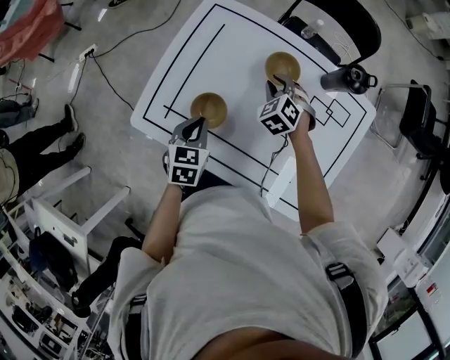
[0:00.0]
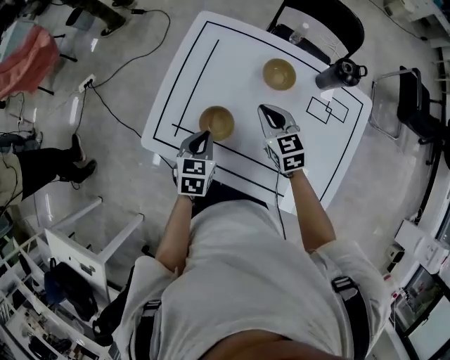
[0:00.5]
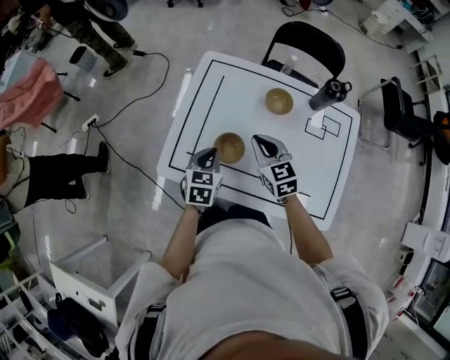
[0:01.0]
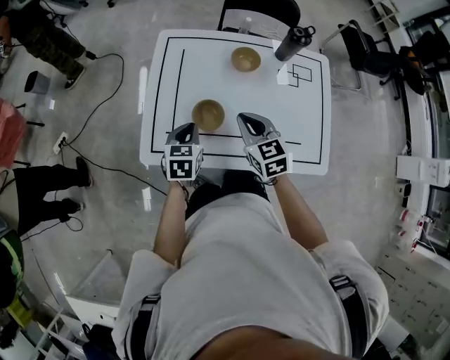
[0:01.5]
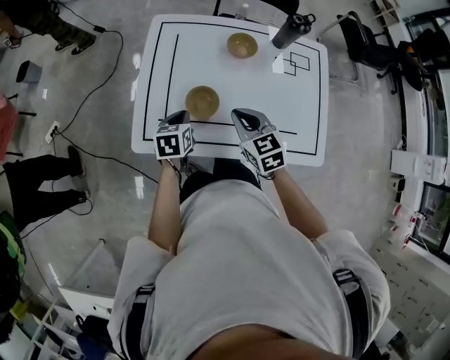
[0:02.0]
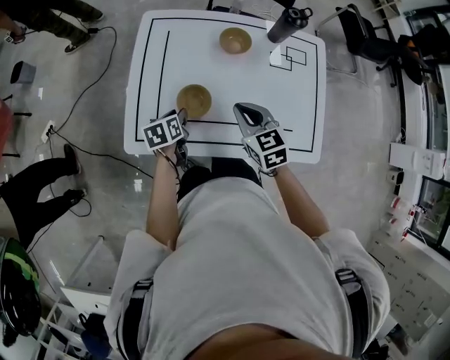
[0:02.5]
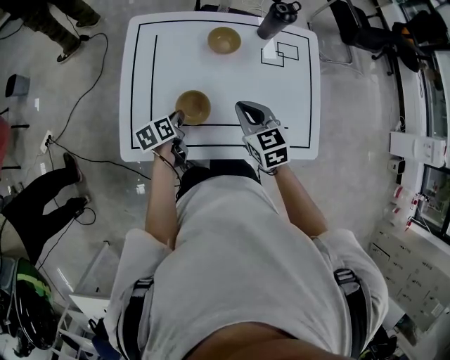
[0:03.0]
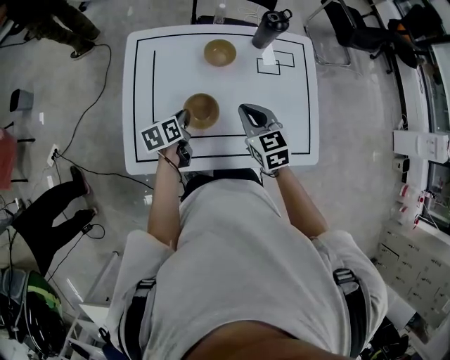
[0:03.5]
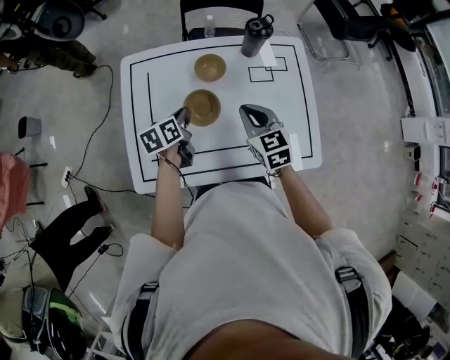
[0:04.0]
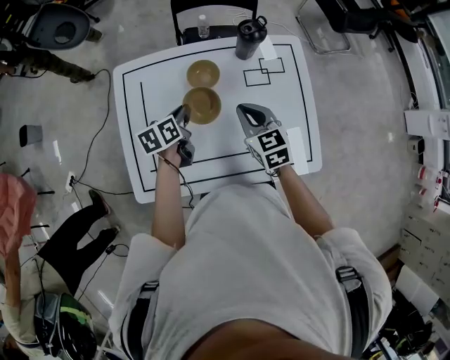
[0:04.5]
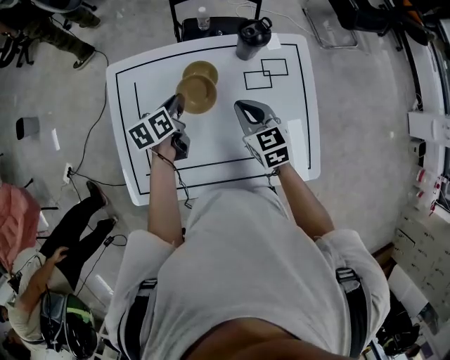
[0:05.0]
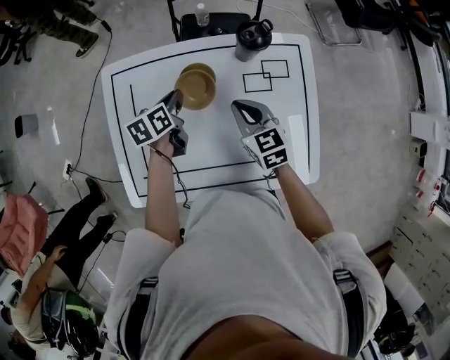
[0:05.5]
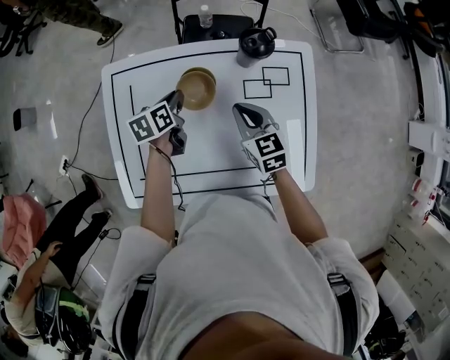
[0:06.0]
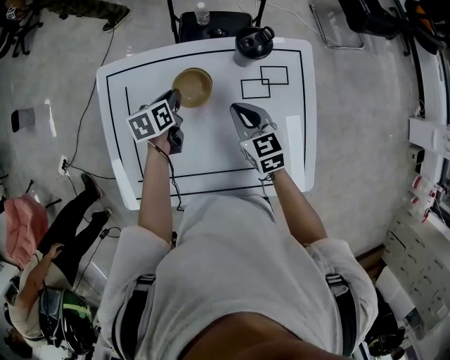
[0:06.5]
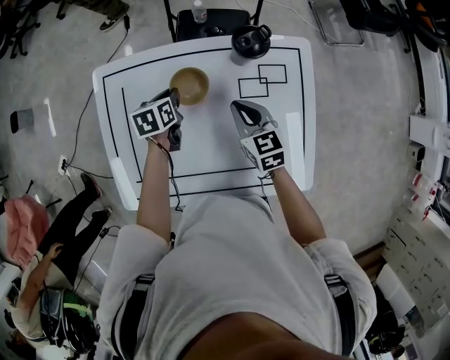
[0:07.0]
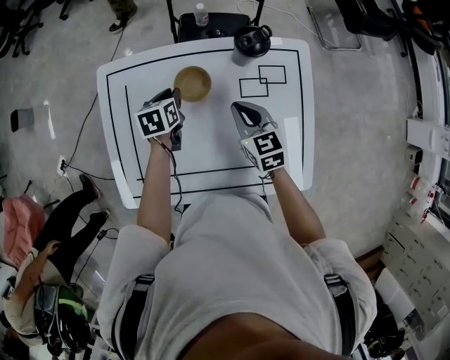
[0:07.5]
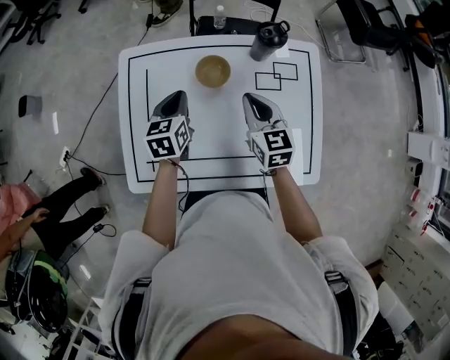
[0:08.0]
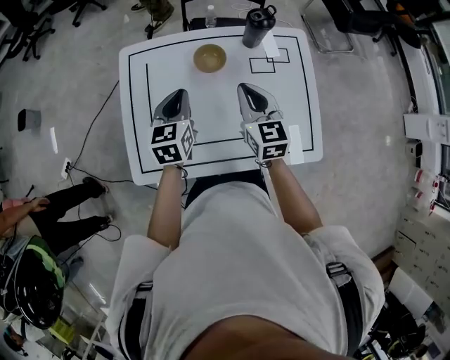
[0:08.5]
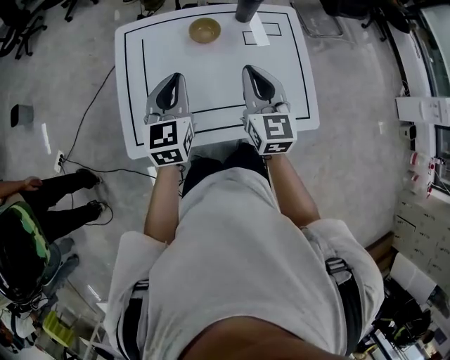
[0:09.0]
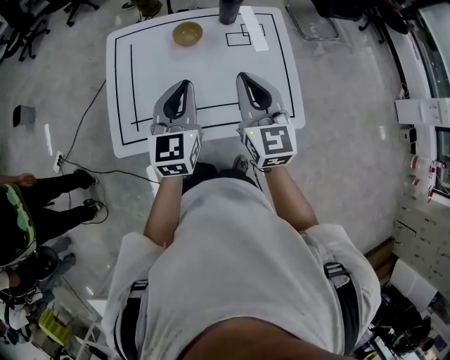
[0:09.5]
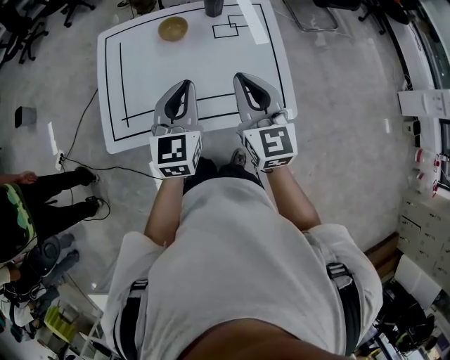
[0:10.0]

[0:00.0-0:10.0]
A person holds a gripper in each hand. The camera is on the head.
0:00.0 to 0:02.0: The left gripper moves to the left, roughly 5 cm, while the right gripper travels backward, upward and to the left by some 25 cm, rolls clockwise, seen from behind, by about 40 degrees, and closes.
0:02.0 to 0:04.0: The left gripper travels forward and to the right by about 15 cm, and opens, then closes once more. Meanwhile the right gripper heads to the right and forward, covering about 15 cm.
0:04.0 to 0:06.0: The left gripper travels forward by approximately 15 cm, while the right gripper travels forward and downward by approximately 15 cm.
0:06.0 to 0:08.0: The left gripper goes about 10 cm upward and backward, and changes its angle by approximately 30 degrees. Meanwhile the right gripper is displaced upward by about 5 cm.
0:08.0 to 0:10.0: The right gripper moves backward and upward, roughly 30 cm; the left gripper is displaced backward, to the right and upward by some 35 cm, and changes its angle by roughly 30 degrees.

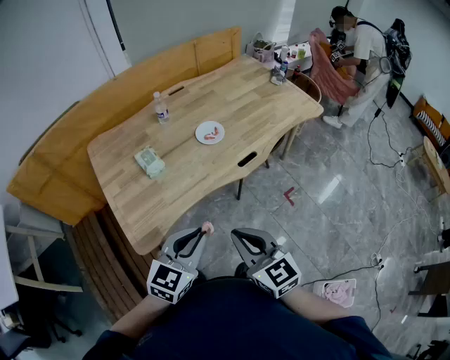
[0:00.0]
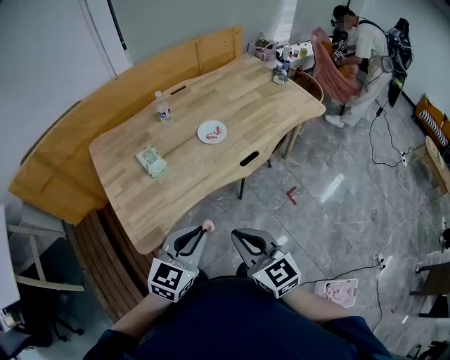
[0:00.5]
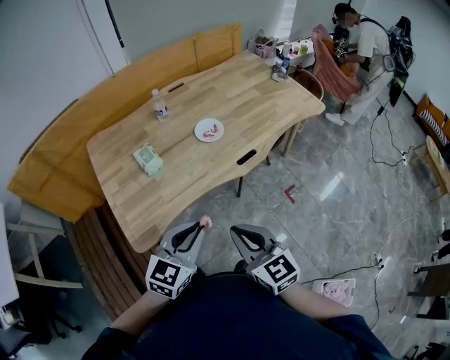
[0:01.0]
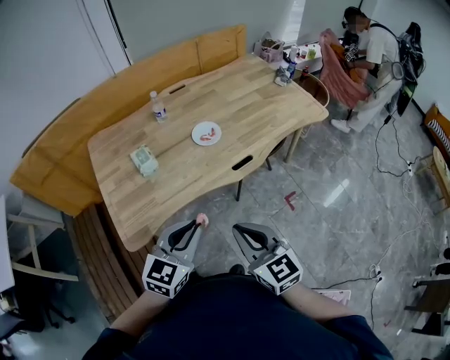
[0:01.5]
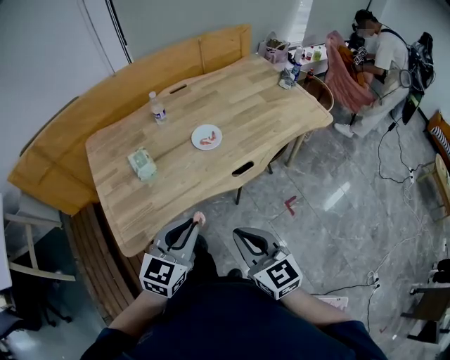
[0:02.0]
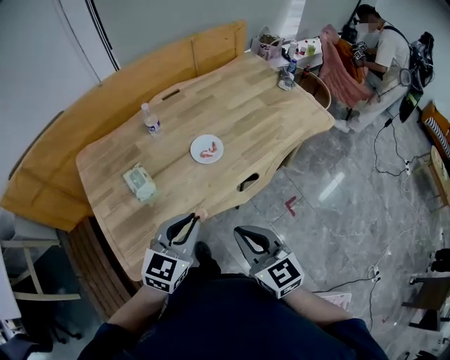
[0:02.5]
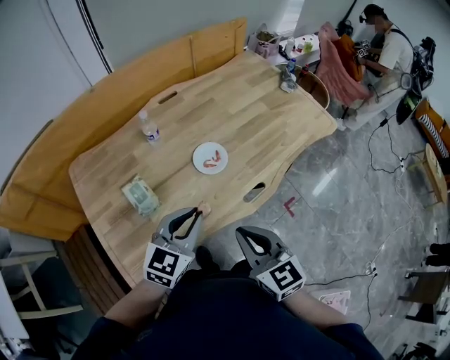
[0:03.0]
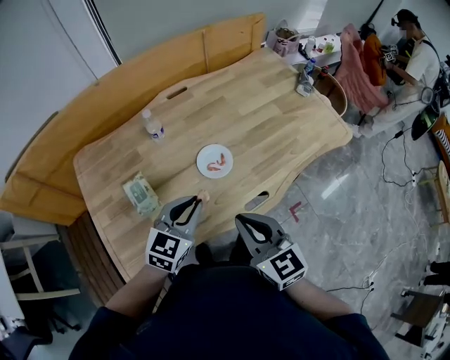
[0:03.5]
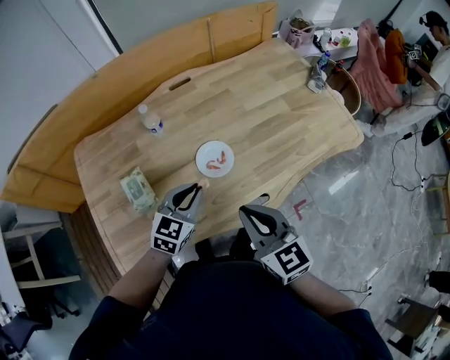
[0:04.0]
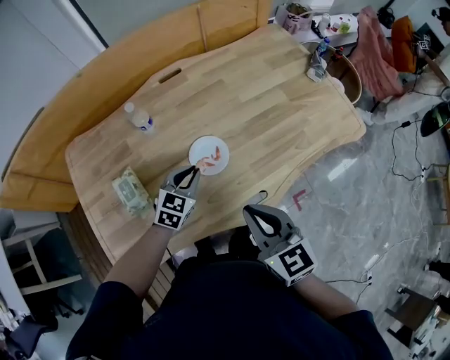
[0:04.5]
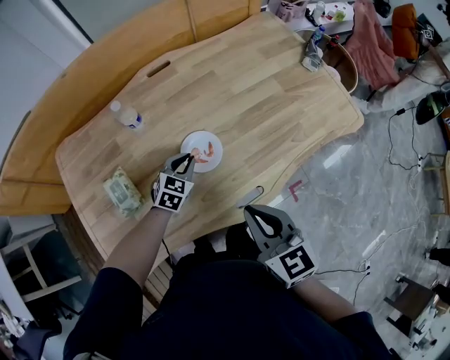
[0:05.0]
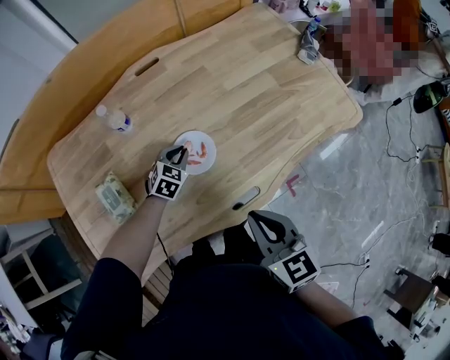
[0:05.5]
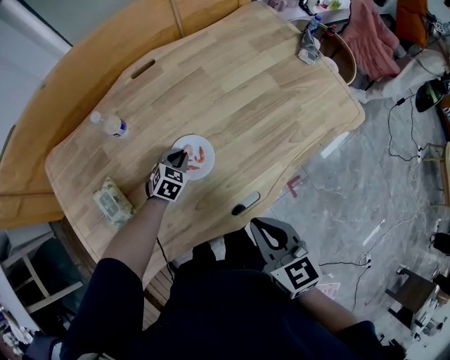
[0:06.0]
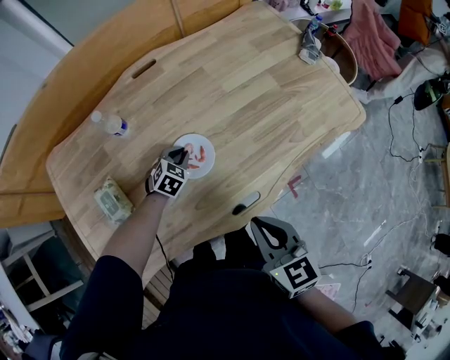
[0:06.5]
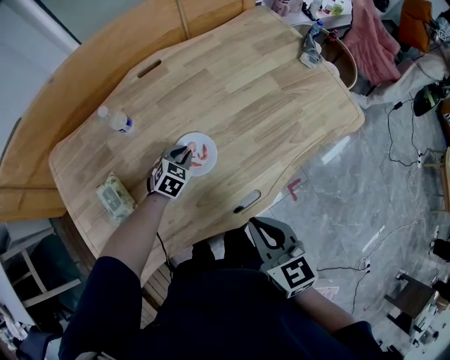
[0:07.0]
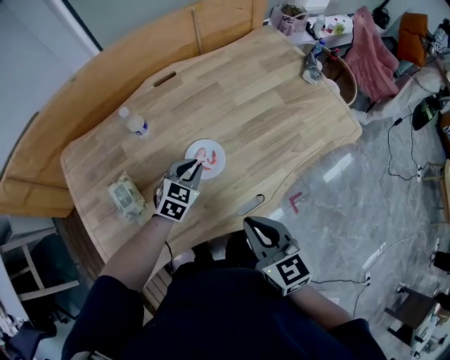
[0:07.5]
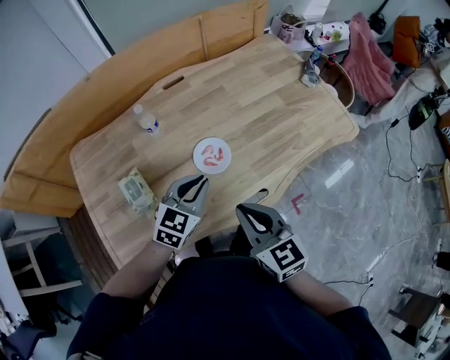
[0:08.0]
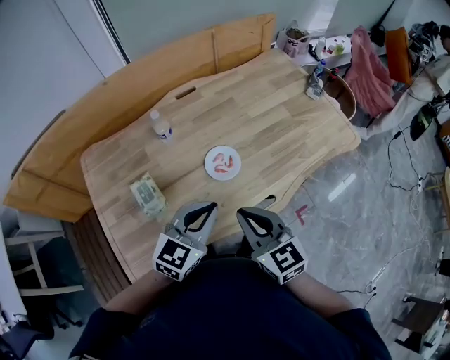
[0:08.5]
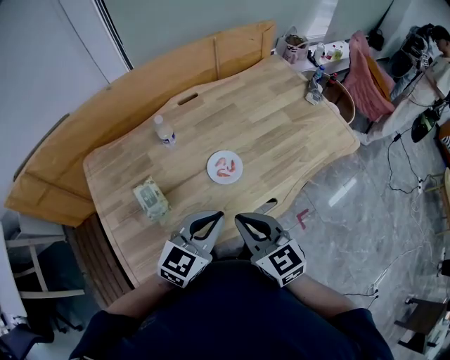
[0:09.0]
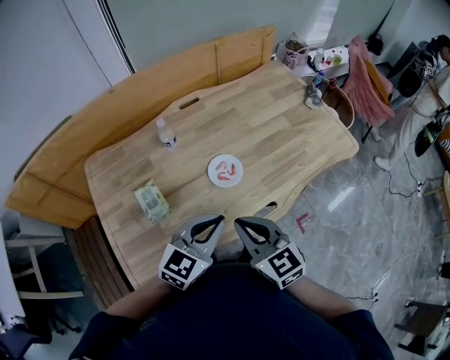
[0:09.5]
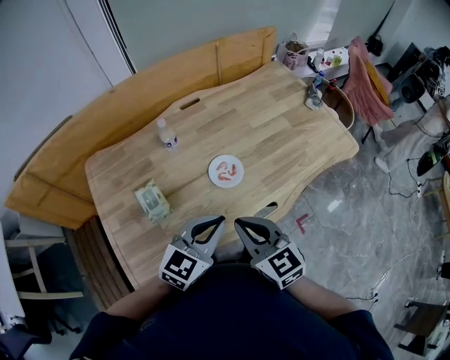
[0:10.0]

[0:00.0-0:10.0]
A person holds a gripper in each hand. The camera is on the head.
0:00.0 to 0:02.0: The right gripper goes about 10 cm to the right and forward; the left gripper travels forward and to the right by some 10 cm.
0:02.0 to 0:04.0: The two grippers go roughly 30 cm forward.
0:04.0 to 0:06.0: The left gripper shifts some 25 cm downward and forward, and changes its angle by about 30 degrees. Meanwhile the right gripper heads downward and to the right, covering some 10 cm.
0:06.0 to 0:08.0: The left gripper travels upward and backward by about 30 cm, and changes its angle by some 30 degrees; the right gripper travels to the left and upward by roughly 10 cm.
0:08.0 to 0:10.0: The right gripper goes some 5 cm to the left, while the left gripper shifts some 15 cm backward and upward.

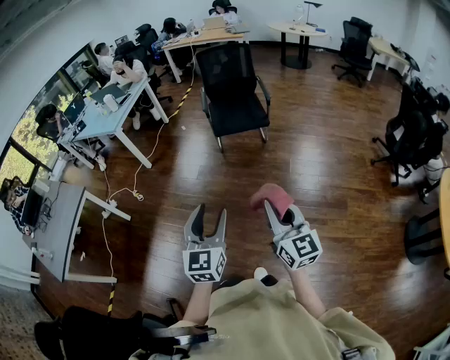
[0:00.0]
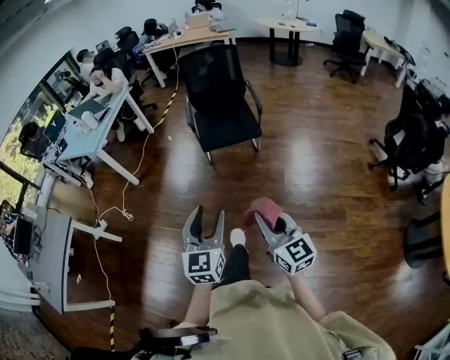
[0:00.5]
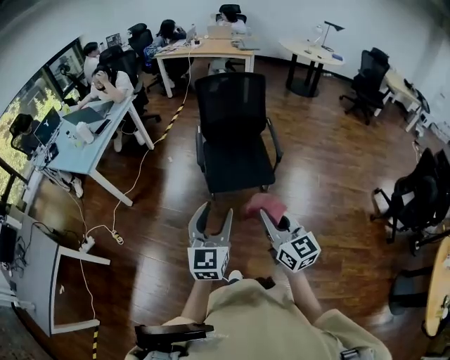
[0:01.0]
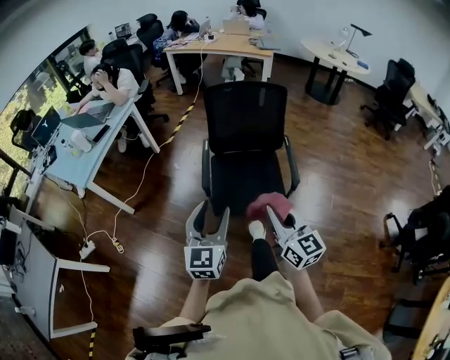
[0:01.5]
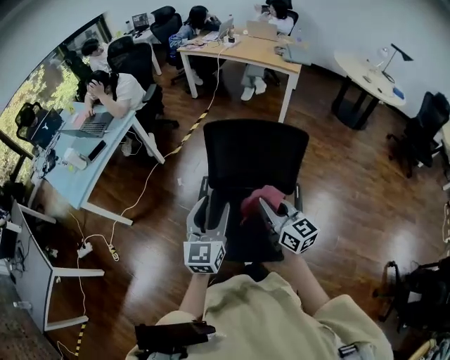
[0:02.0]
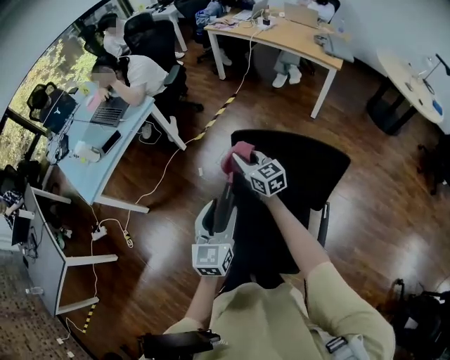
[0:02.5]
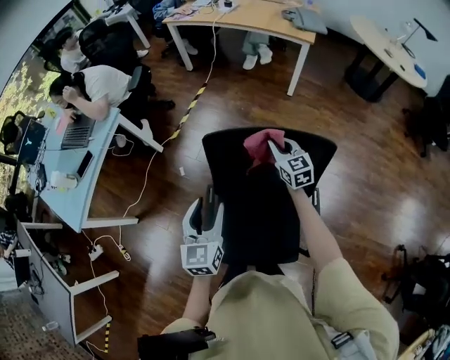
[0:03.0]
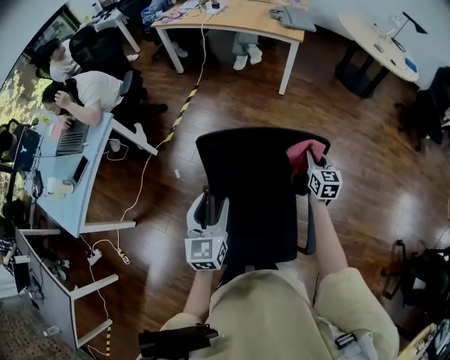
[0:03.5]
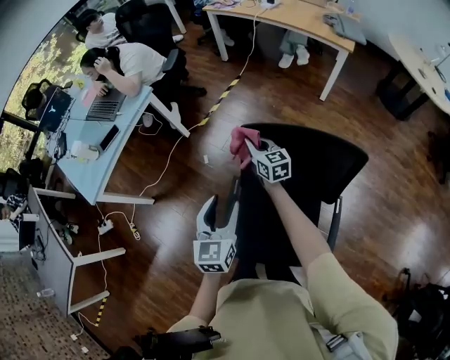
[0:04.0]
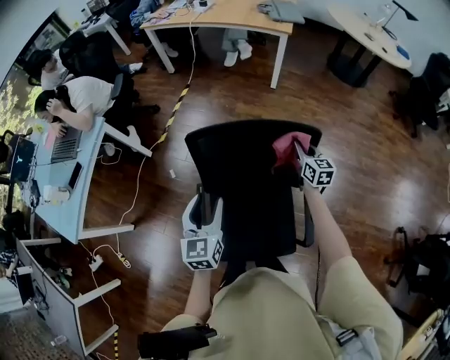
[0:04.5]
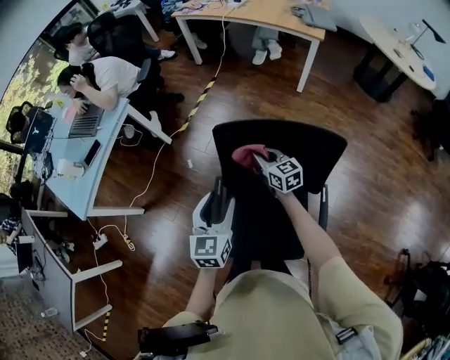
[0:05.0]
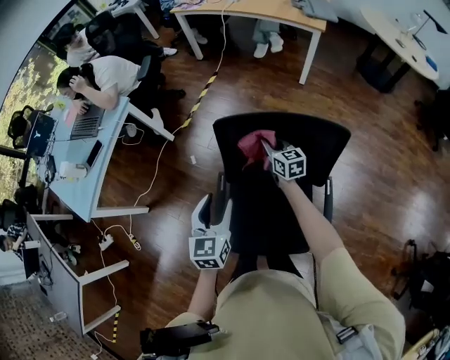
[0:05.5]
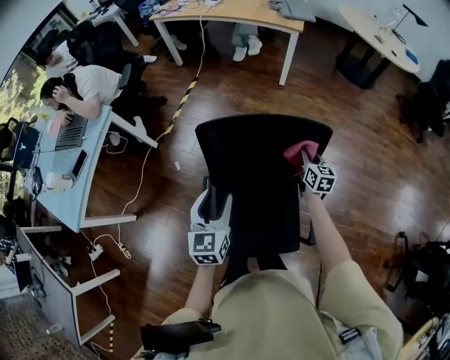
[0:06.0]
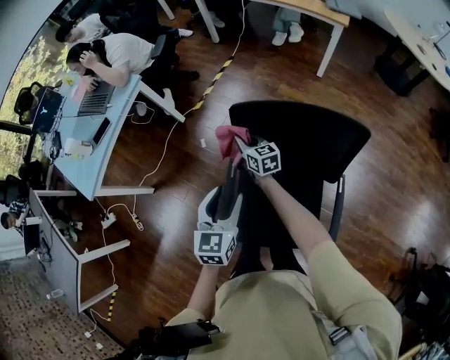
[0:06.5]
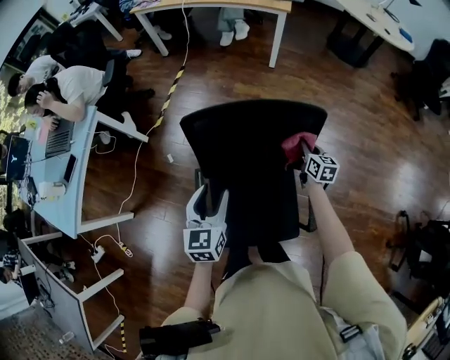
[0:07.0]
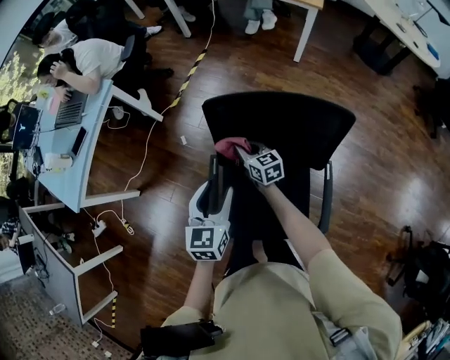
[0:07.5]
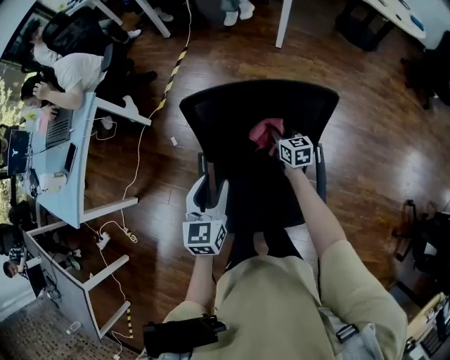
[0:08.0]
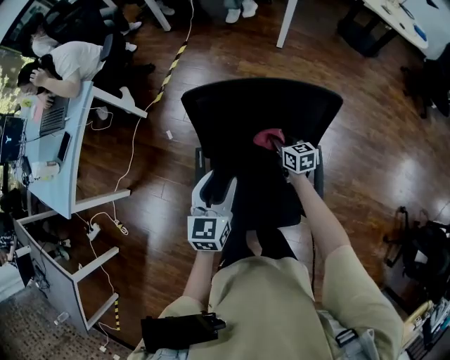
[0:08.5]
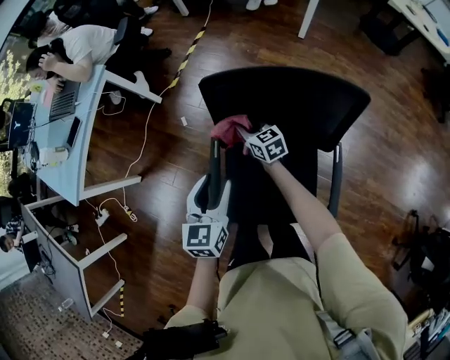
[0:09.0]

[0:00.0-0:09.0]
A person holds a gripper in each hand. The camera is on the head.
0:00.0 to 0:02.0: The pair of grippers is taken forward, about 1 m. The right gripper swivels roughly 30 degrees.
0:02.0 to 0:04.5: The left gripper moves some 20 cm. The right gripper shifts by roughly 40 cm, and changes its angle by approximately 30 degrees.
0:04.5 to 0:07.0: The left gripper swings left and right, approximately 5 cm each way, with 3 reversals; the right gripper swings left and right, about 40 cm each way, with 3 reversals.
0:07.0 to 0:09.0: The left gripper is displaced to the left by about 5 cm. Meanwhile the right gripper moves left and right over about 35 cm, changing direction 2 times, and rotates approximately 40 degrees.
